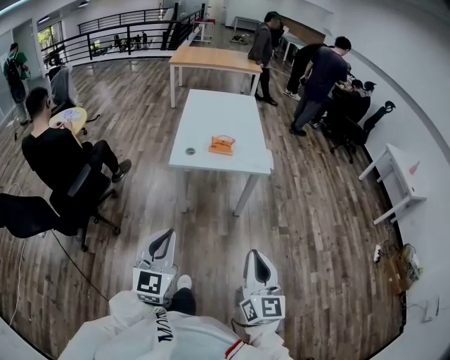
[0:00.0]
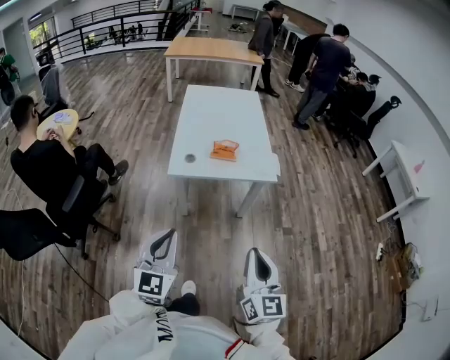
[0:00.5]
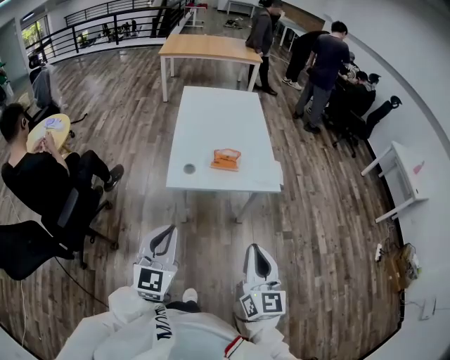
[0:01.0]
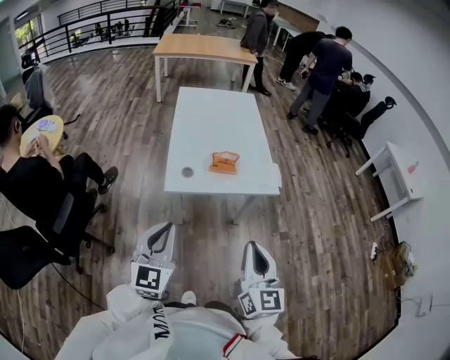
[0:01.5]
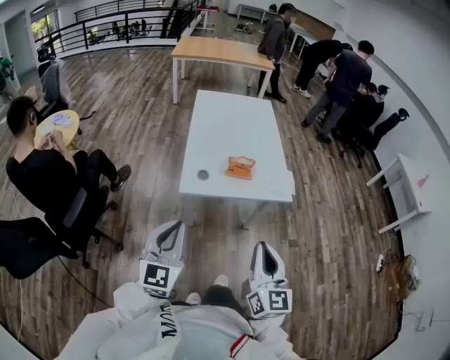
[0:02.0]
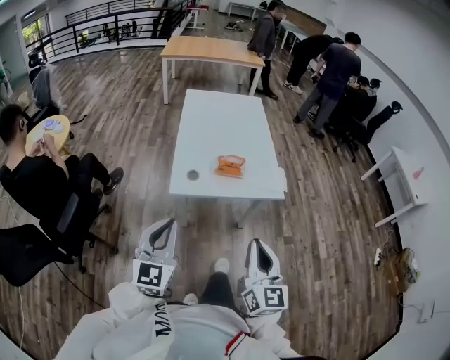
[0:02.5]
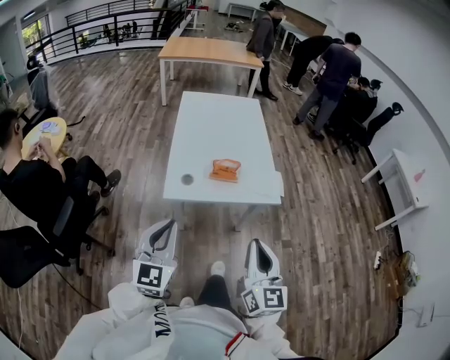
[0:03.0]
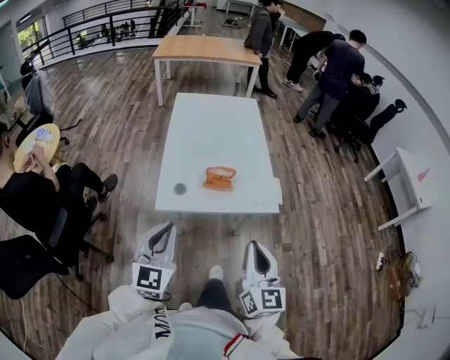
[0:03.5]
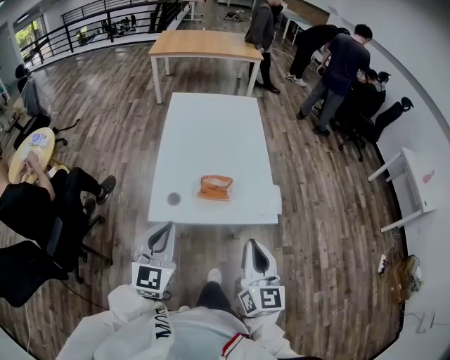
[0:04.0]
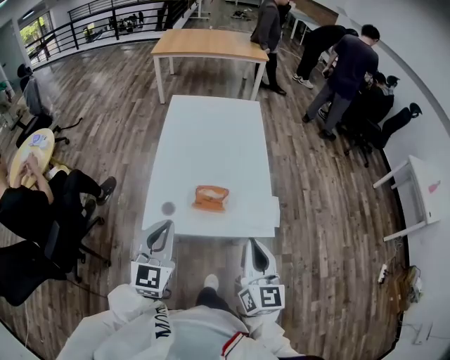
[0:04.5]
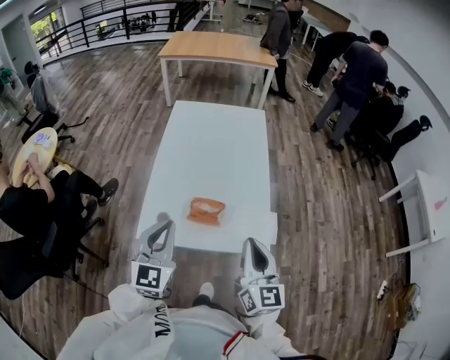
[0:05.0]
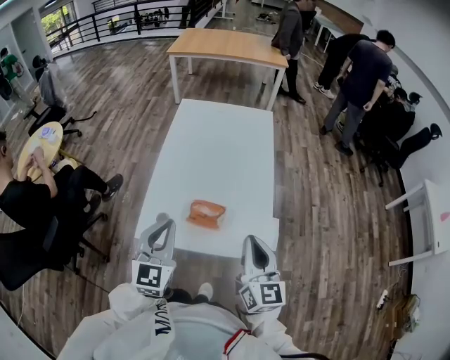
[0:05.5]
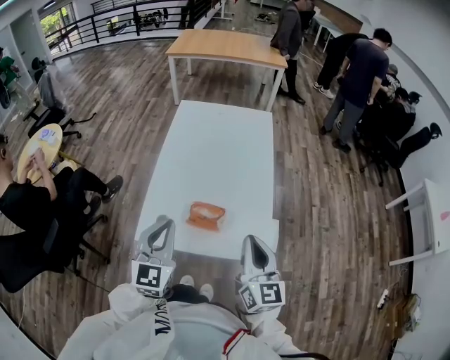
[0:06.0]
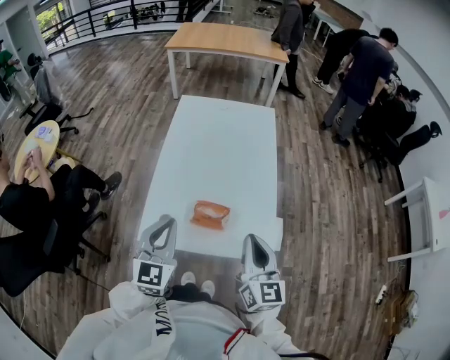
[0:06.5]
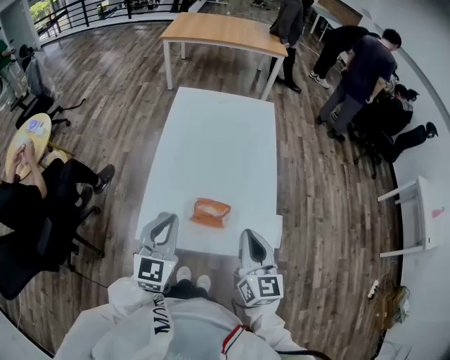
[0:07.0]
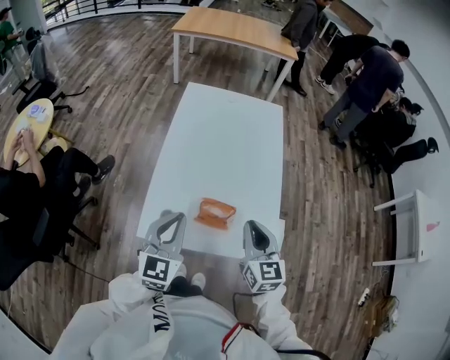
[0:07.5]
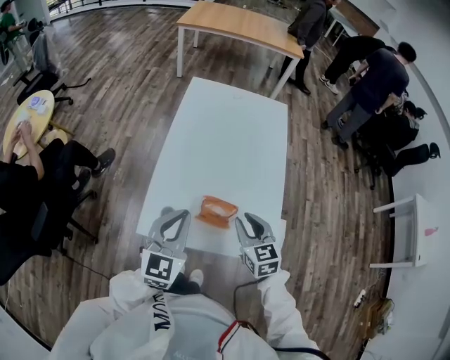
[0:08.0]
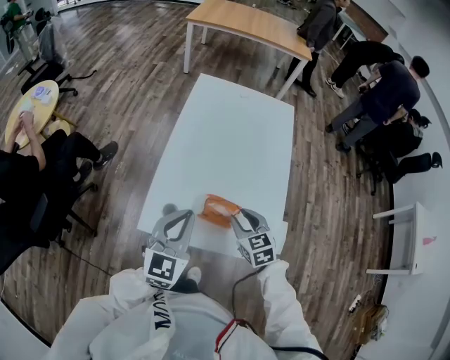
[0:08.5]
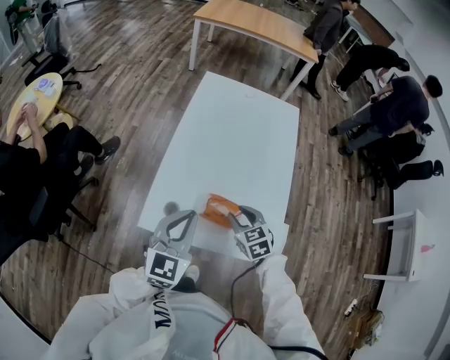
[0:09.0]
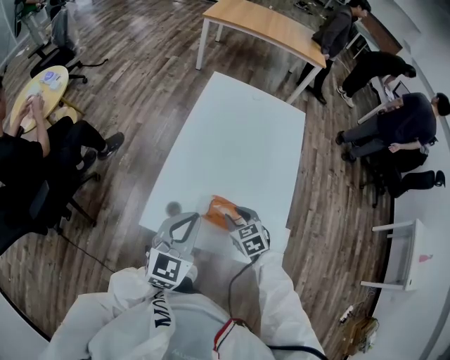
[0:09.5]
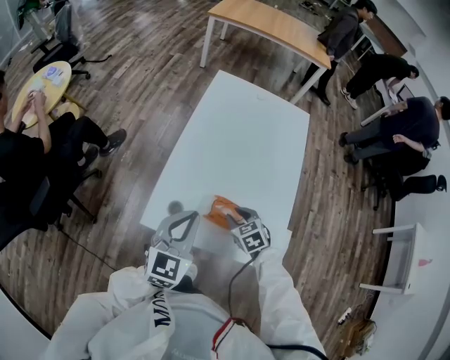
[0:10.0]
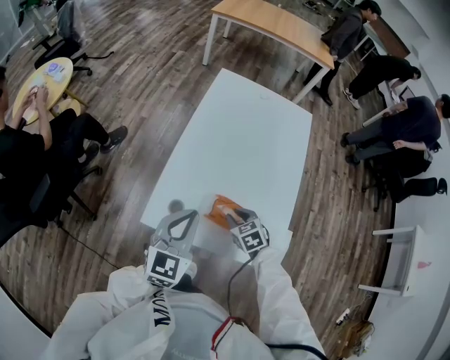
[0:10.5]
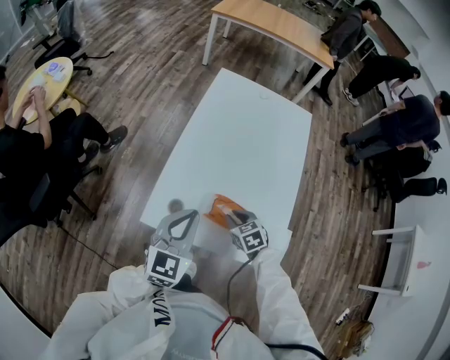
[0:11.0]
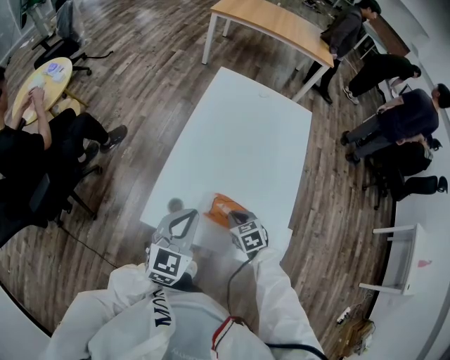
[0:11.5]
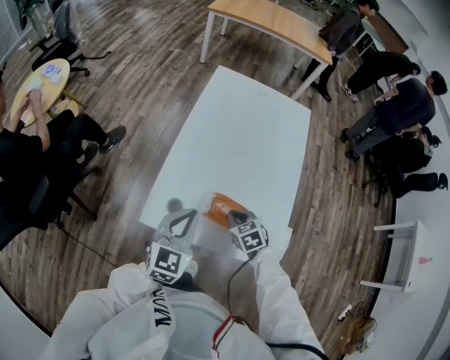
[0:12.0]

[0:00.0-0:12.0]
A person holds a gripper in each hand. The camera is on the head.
0:00.0 to 0:02.0: The right gripper heads forward and to the left, covering approximately 20 cm. The left gripper goes some 20 cm forward.
0:02.0 to 0:04.0: The right gripper moves forward, some 15 cm, while the left gripper travels forward and to the right by roughly 15 cm.
0:04.0 to 0:06.0: Both grippers travel together forward, about 10 cm.
0:06.0 to 0:08.0: The right gripper shifts roughly 15 cm downward, forward and to the left, rotates some 30 degrees, and opens.
0:08.0 to 0:10.0: The right gripper moves downward, some 10 cm, and changes its angle by about 30 degrees.
0:10.0 to 0:12.0: The right gripper closes its fingers.

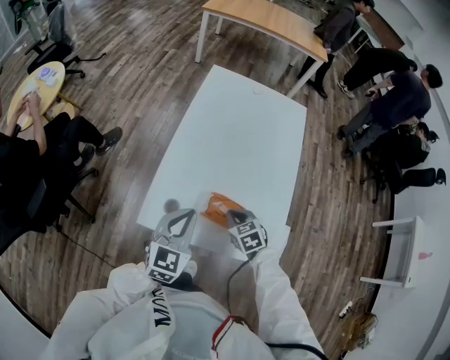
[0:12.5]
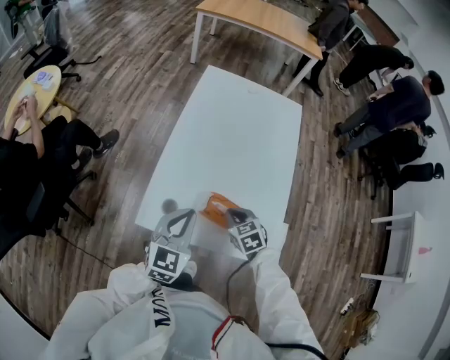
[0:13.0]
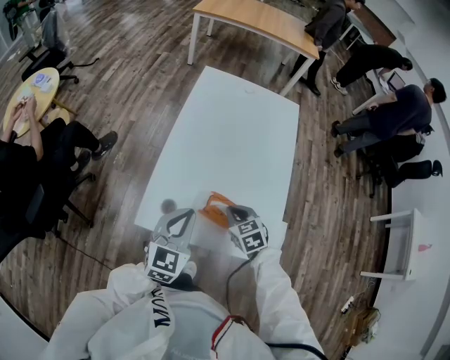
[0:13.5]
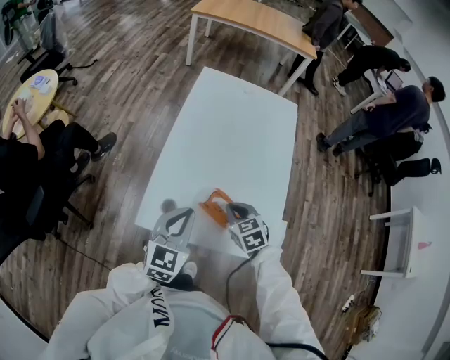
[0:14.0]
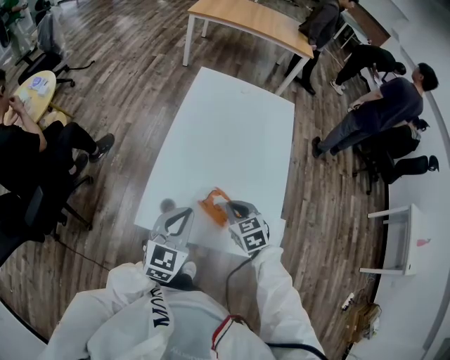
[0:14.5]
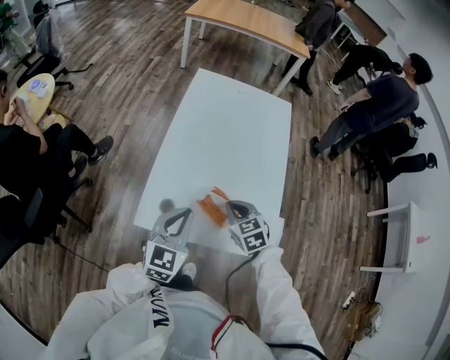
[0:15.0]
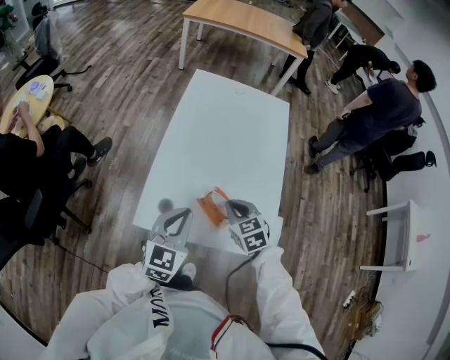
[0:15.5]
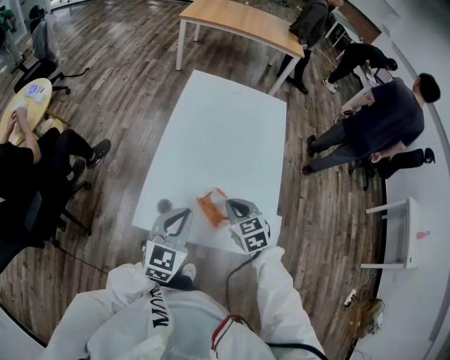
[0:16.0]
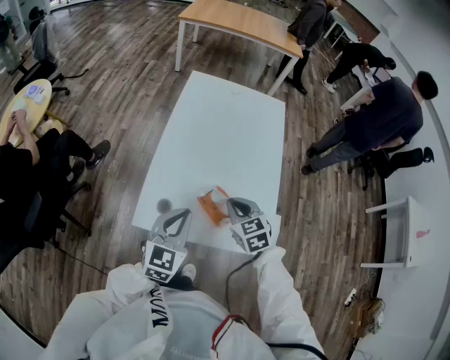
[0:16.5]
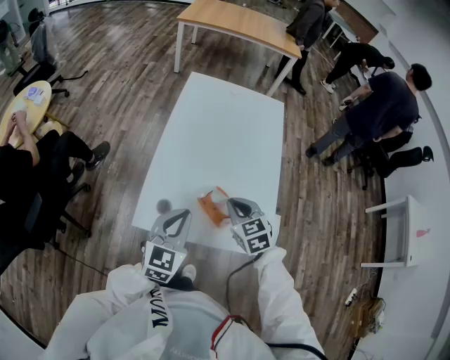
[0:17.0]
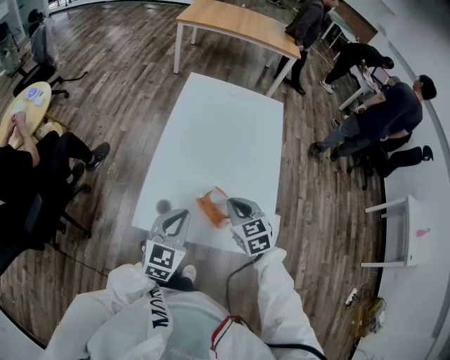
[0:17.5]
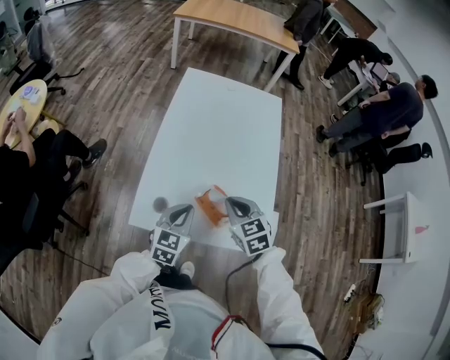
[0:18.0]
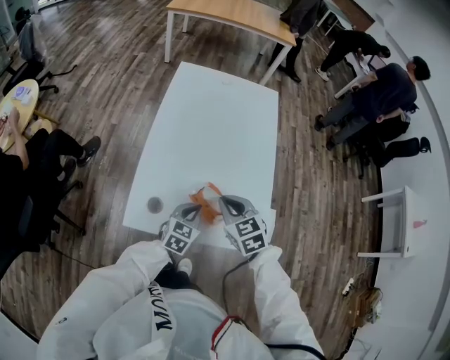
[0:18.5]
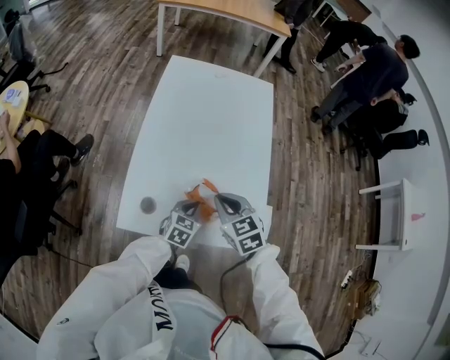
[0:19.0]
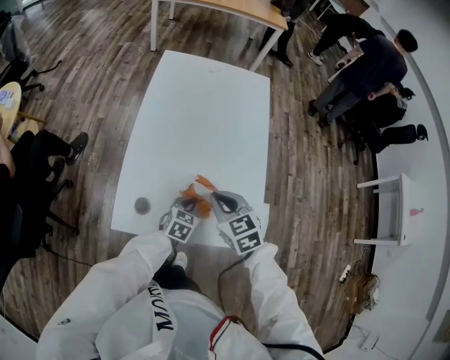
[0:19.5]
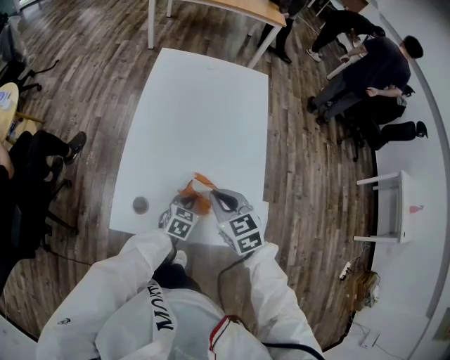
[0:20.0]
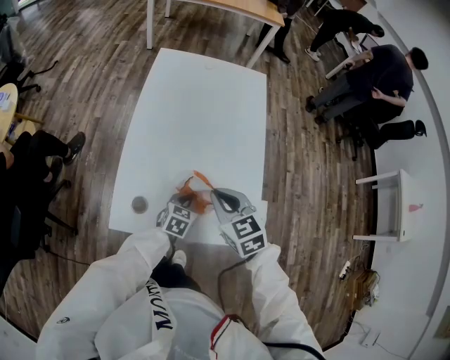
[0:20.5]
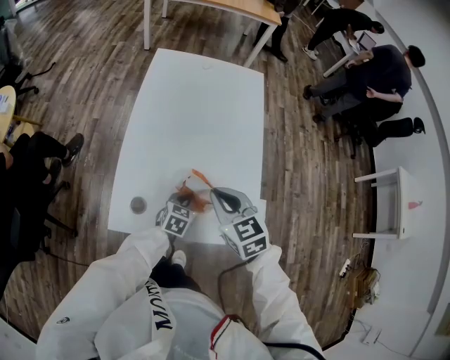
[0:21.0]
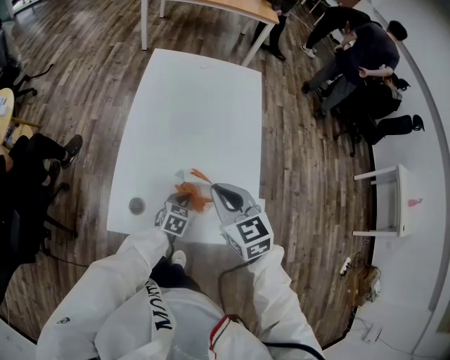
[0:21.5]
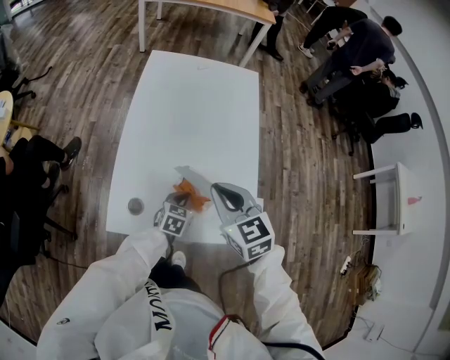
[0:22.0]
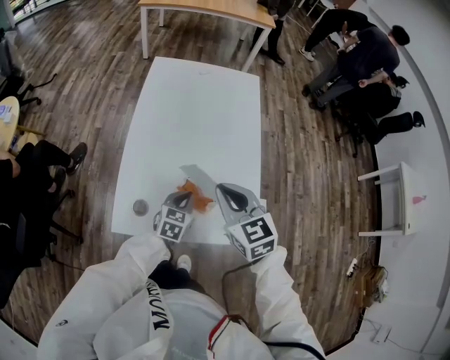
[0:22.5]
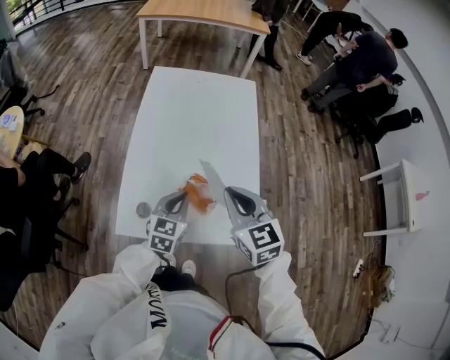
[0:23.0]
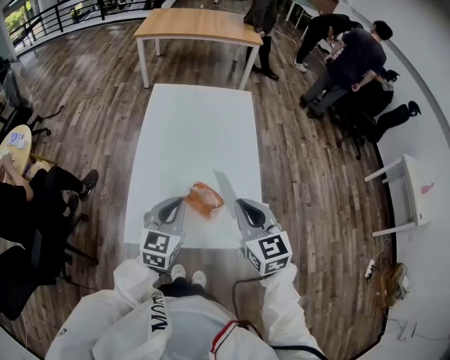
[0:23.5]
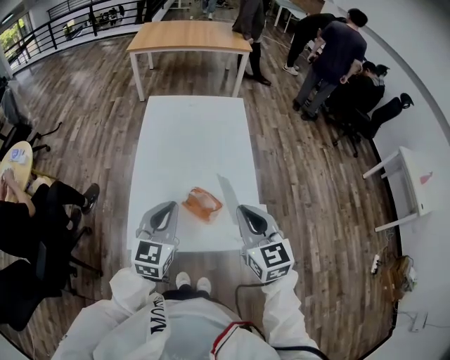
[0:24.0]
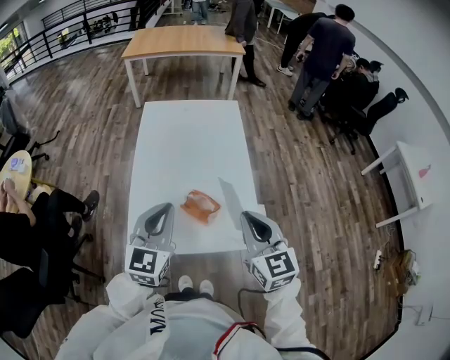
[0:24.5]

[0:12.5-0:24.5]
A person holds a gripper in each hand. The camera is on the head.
0:12.5 to 0:14.5: The right gripper goes approximately 5 cm upward.
0:14.5 to 0:16.5: The grippers stay close to where they were, moving slightly.
0:16.5 to 0:18.5: The left gripper travels downward and to the right by roughly 15 cm.
0:18.5 to 0:20.5: The left gripper travels downward by about 5 cm.
0:20.5 to 0:22.5: Both grippers move upward, about 5 cm.
0:22.5 to 0:24.5: The left gripper travels upward by approximately 25 cm, and changes its angle by approximately 30 degrees, while the right gripper moves backward, upward and to the right, roughly 15 cm, and changes its angle by about 20 degrees.

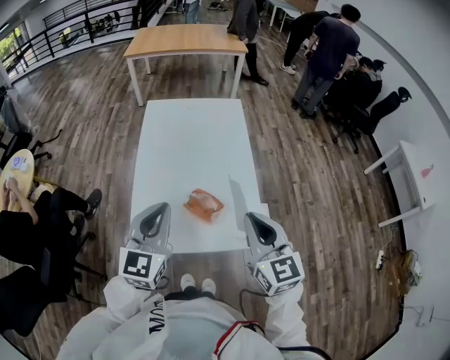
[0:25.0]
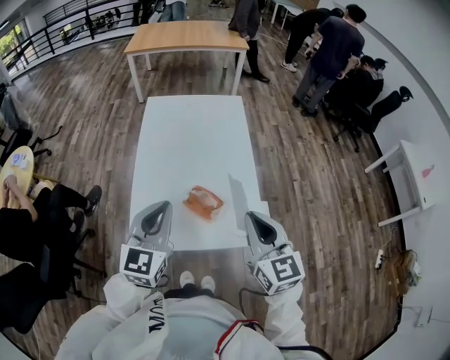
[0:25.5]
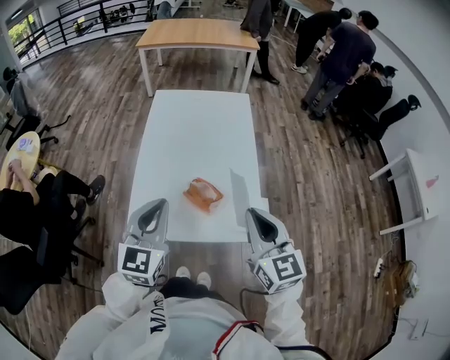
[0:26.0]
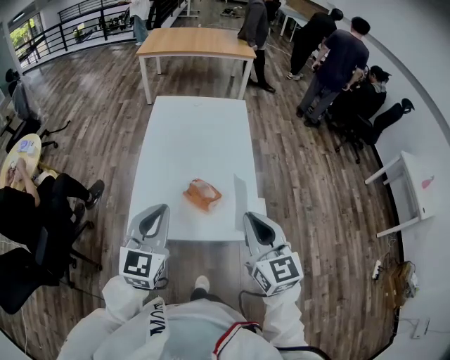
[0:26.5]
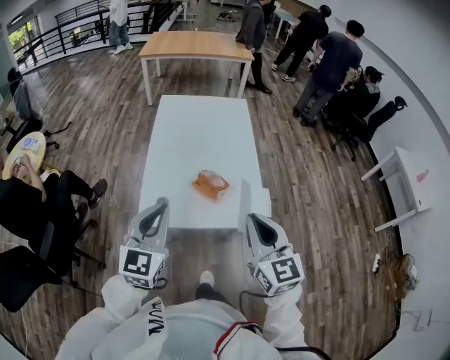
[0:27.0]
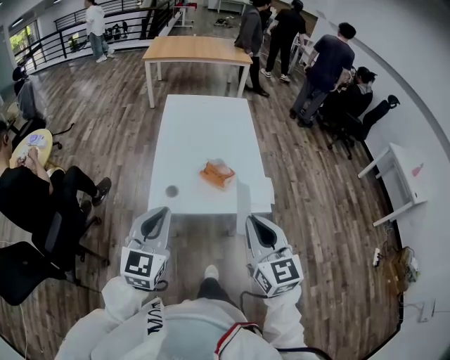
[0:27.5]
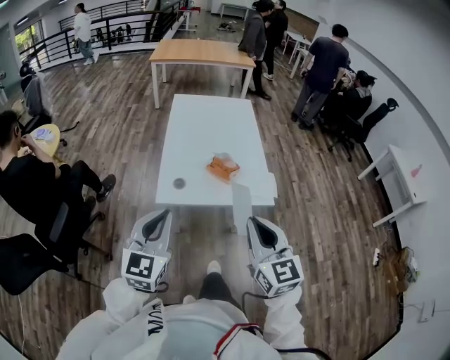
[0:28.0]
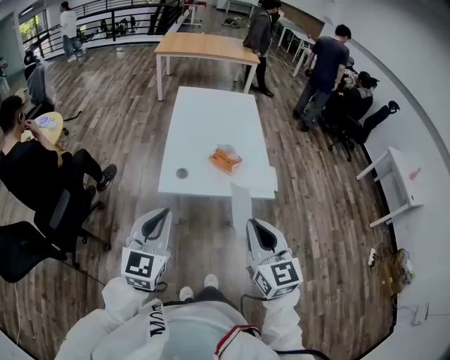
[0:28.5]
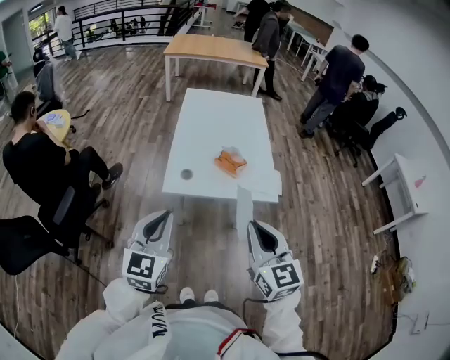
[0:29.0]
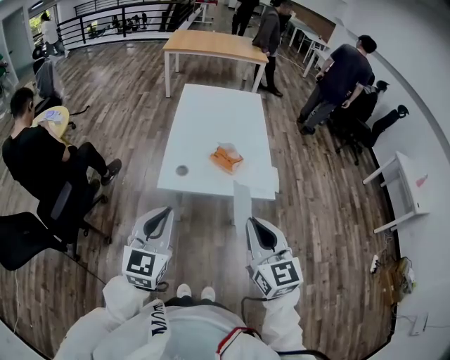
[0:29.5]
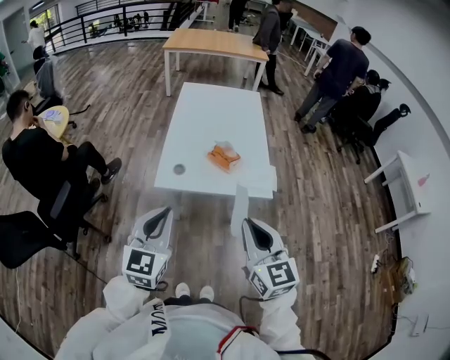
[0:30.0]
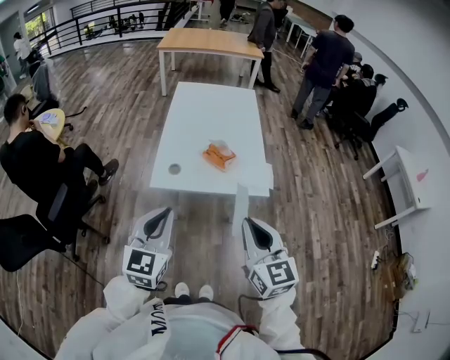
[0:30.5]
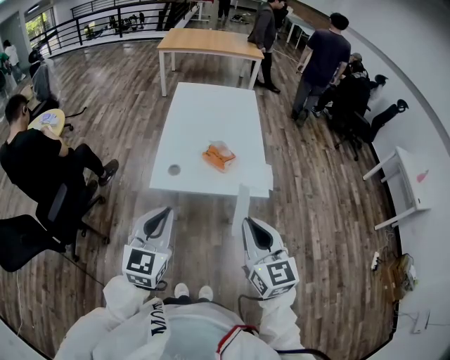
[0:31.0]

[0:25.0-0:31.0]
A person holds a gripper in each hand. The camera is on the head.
0:25.0 to 0:27.0: The two grippers go some 10 cm backward.
0:27.0 to 0:29.0: The two grippers go approximately 15 cm backward and to the left.
0:29.0 to 0:31.0: The left gripper goes roughly 5 cm to the right.